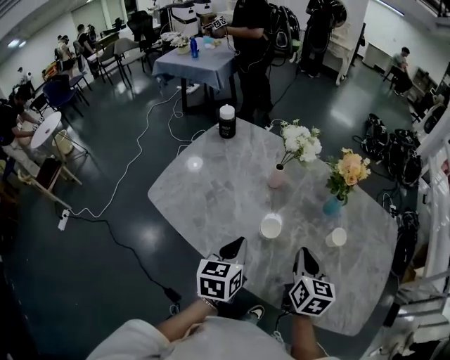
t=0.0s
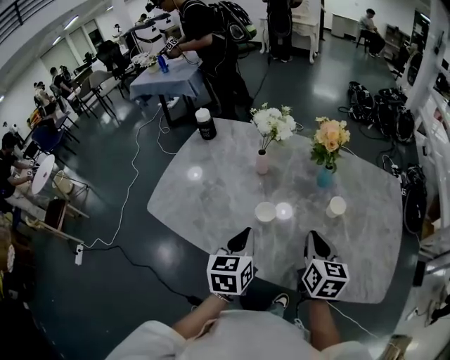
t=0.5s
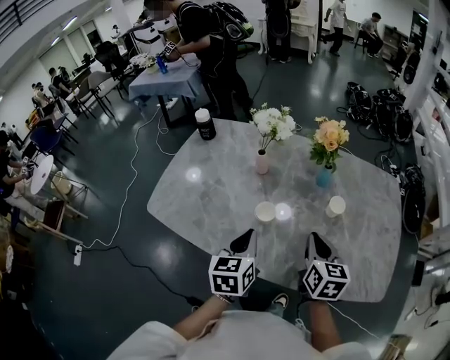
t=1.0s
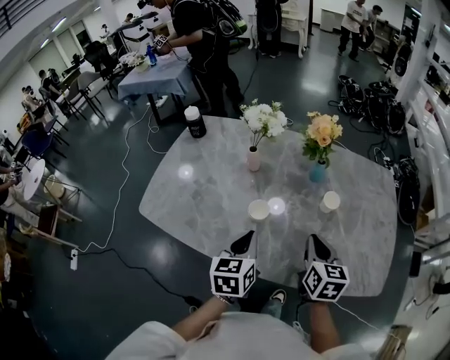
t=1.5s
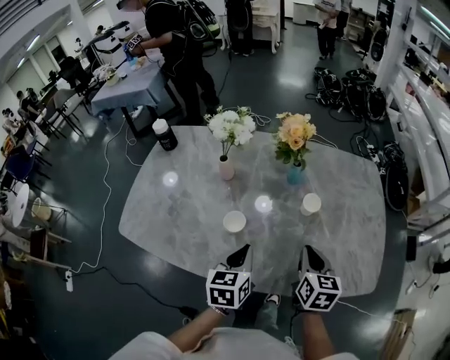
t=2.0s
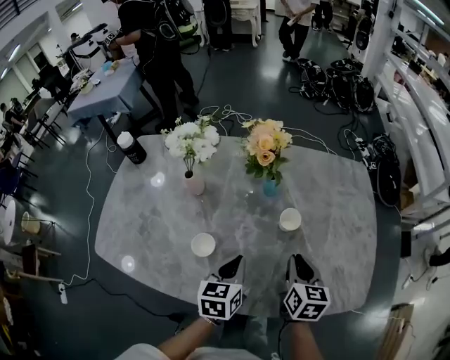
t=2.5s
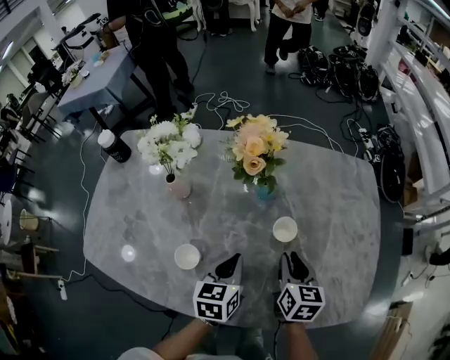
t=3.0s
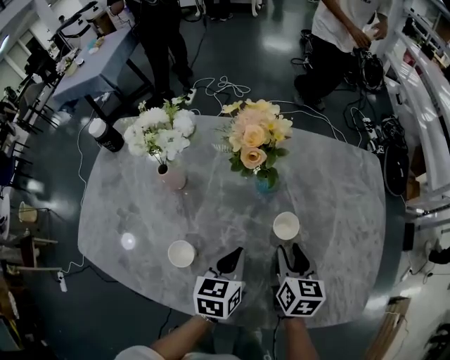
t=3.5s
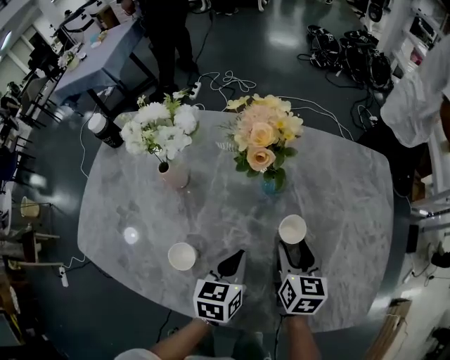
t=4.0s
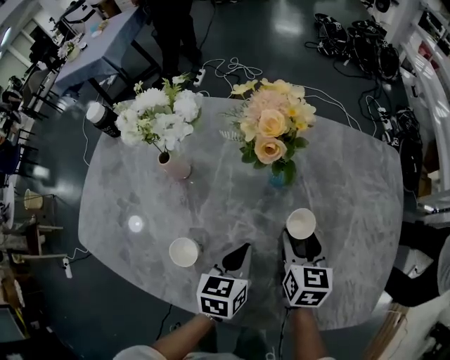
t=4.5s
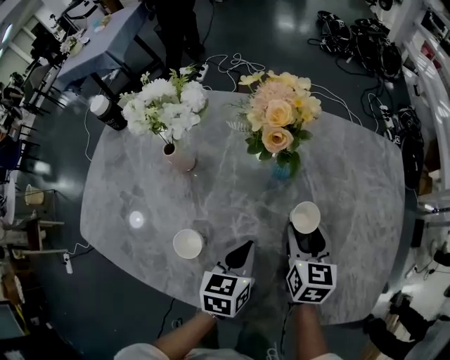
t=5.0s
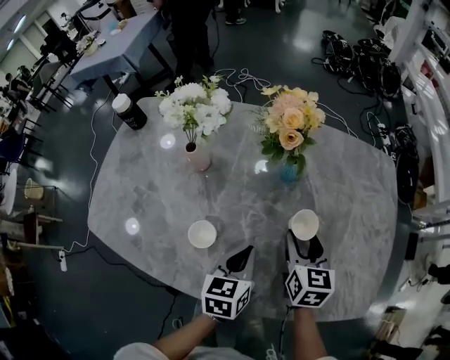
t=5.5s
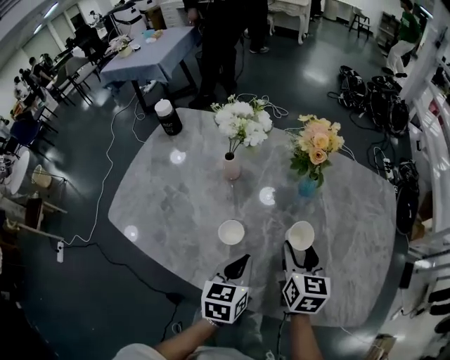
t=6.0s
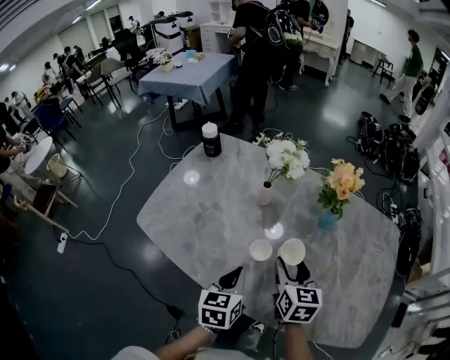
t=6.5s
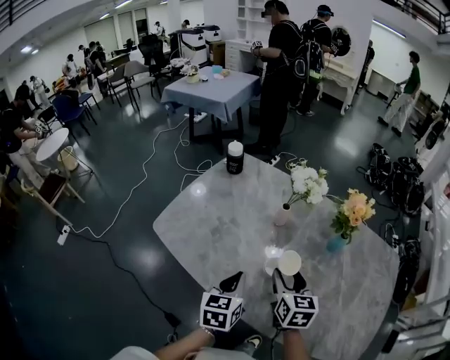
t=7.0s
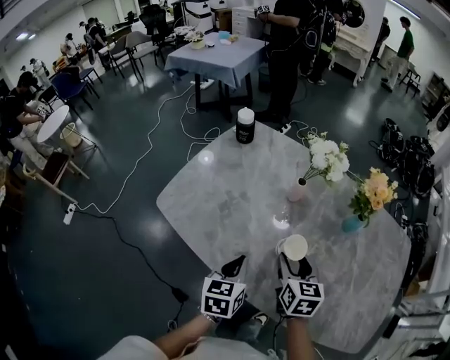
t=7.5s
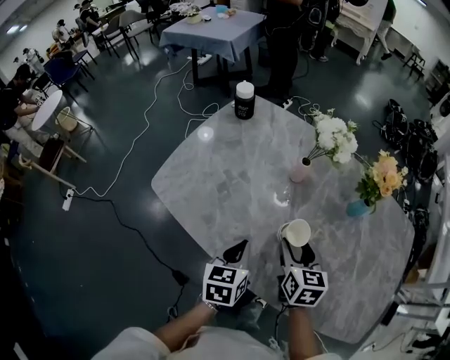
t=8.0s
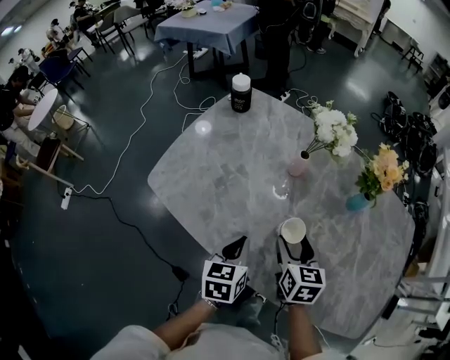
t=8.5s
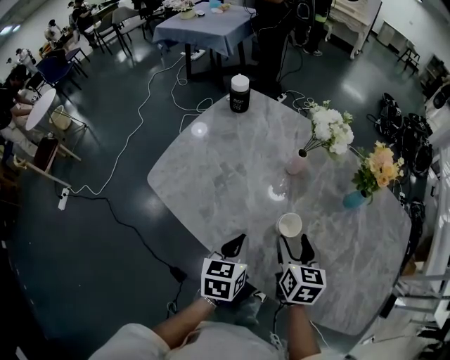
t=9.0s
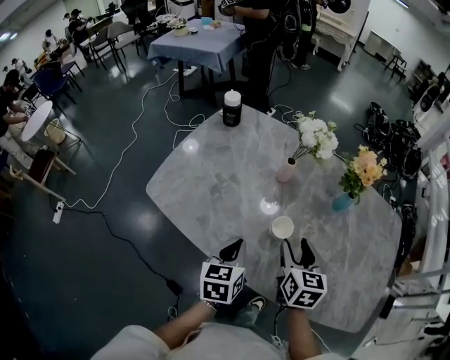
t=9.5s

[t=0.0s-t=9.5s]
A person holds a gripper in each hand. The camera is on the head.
t=0.0s to t=2.0s: The grippers both shift to the right by approximately 10 cm.
t=2.0s to t=4.0s: The left gripper moves forward, downward and to the right, roughly 20 cm; the right gripper moves forward and downward, approximately 20 cm, and opens up.
t=4.0s to t=5.5s: The left gripper shifts by some 5 cm, while the right gripper moves approximately 5 cm.
t=5.5s to t=7.5s: Both grippers move to the left, approximately 25 cm. The left gripper swivels about 20 degrees. Meanwhile the right gripper rotates some 20 degrees.
t=7.5s to t=9.5s: The grippers stay close to where they were, moving slightly.

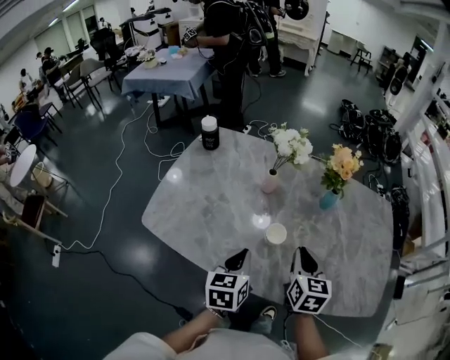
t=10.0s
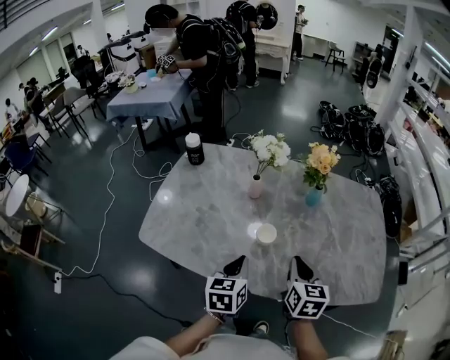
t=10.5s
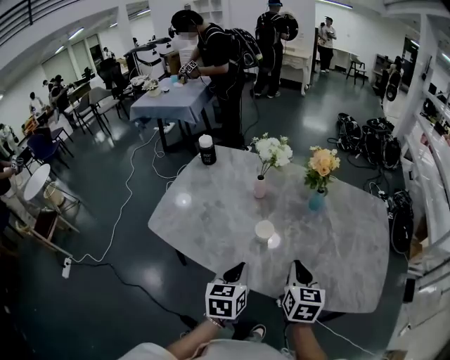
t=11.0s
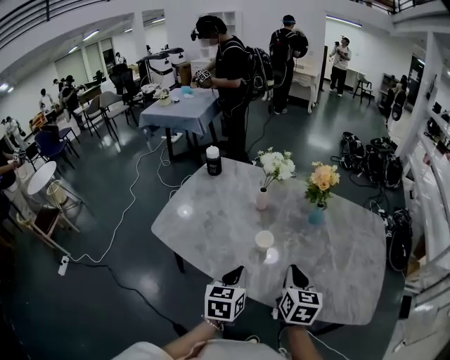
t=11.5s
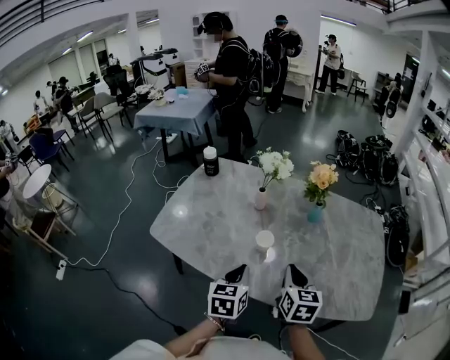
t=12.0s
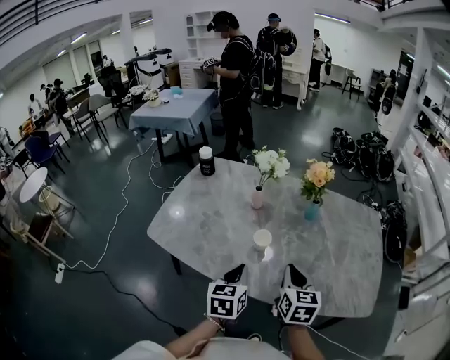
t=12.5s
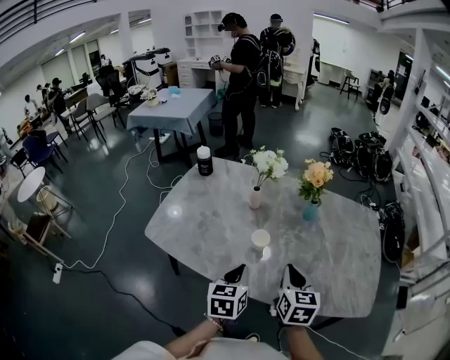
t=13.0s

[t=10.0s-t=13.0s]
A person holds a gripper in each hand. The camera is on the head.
t=10.0s to t=11.5s: Both grippers move backward, about 5 cm.
t=11.5s to t=13.0s: The grippers move only a little.

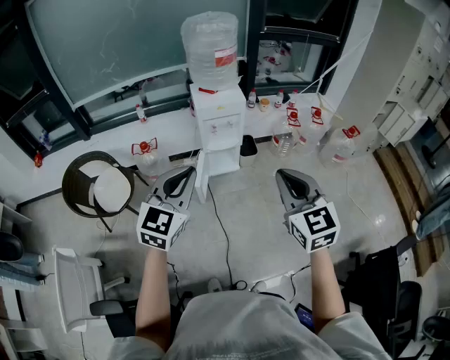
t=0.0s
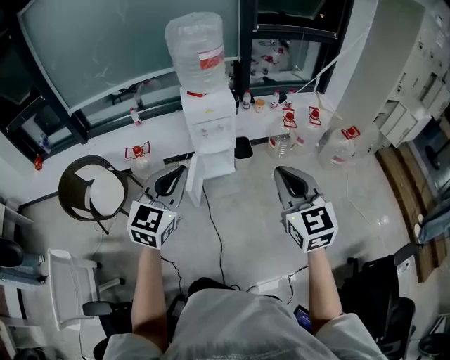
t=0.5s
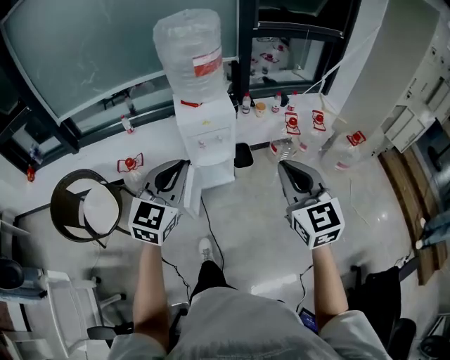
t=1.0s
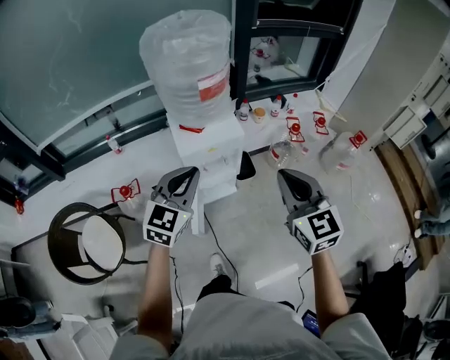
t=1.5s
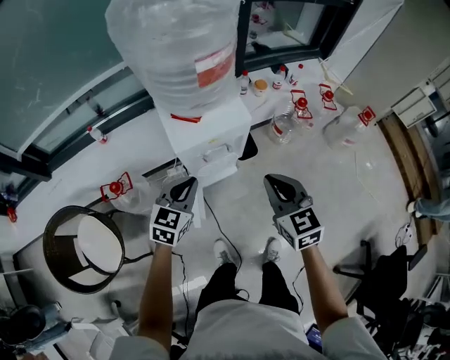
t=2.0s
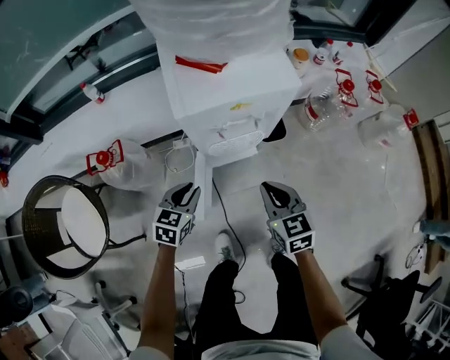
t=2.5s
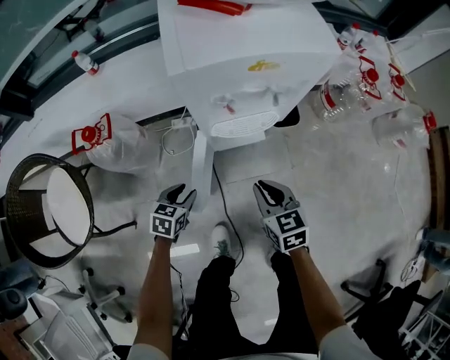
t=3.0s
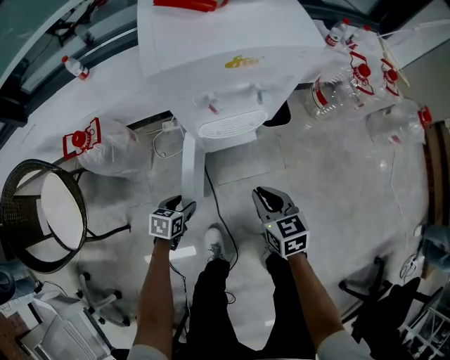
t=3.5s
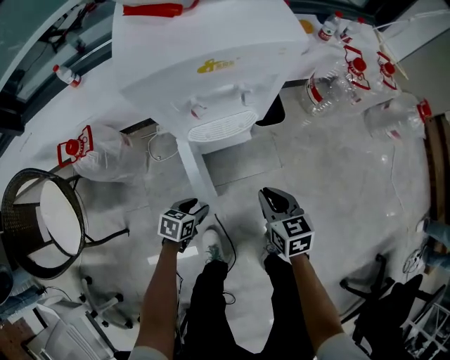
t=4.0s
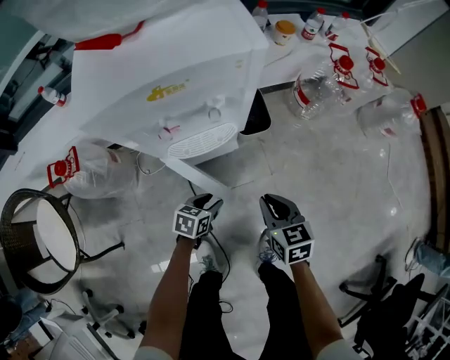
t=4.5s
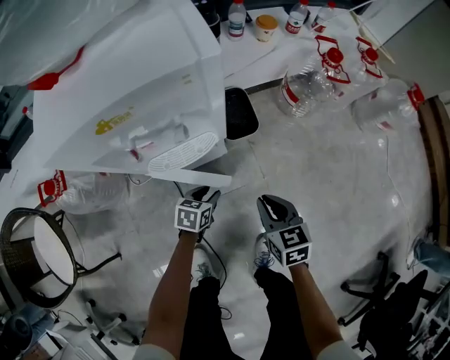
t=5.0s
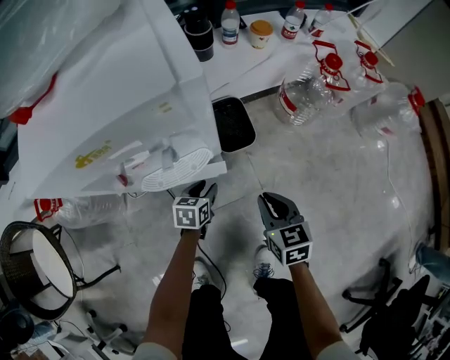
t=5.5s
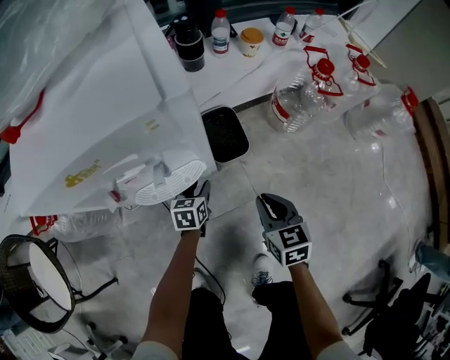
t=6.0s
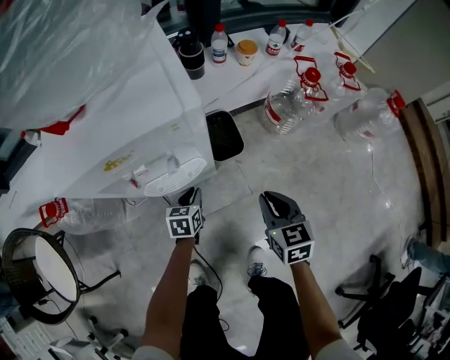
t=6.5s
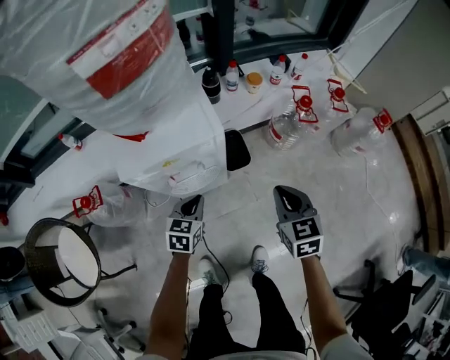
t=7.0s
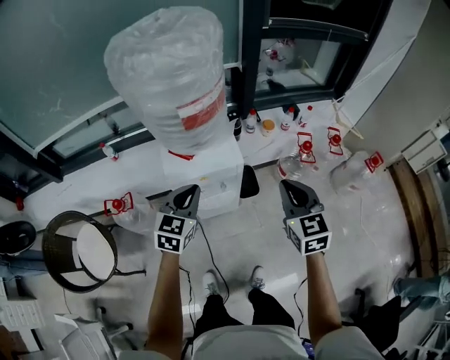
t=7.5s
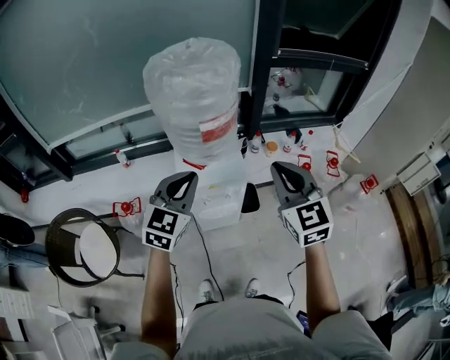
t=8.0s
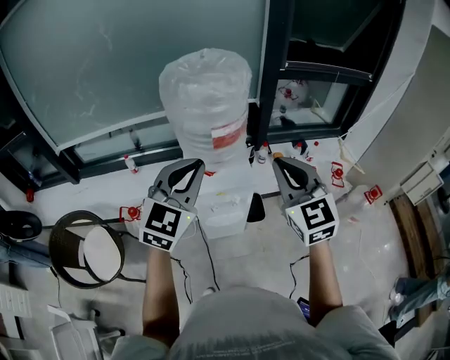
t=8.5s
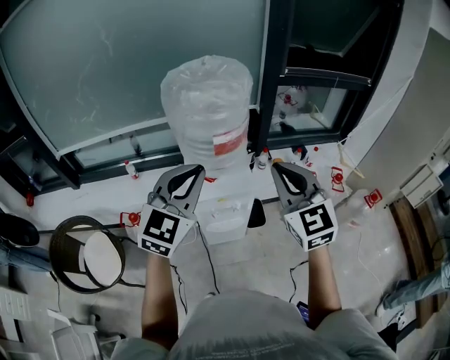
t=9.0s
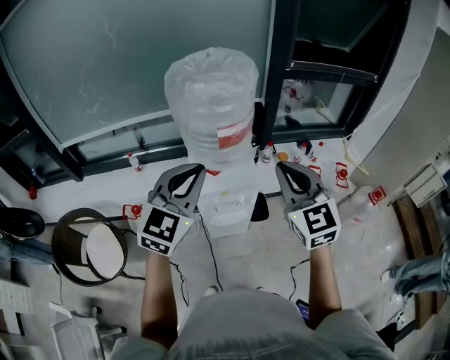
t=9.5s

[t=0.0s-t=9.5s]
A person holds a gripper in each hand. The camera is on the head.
t=0.0s to t=2.0s: The two grippers travel together, forward, approximately 50 cm. Both grippers travel together downward, about 25 cm. The left gripper rotates approximately 30 degrees.
t=2.0s to t=4.0s: Both grippers move downward, roughly 50 cm. The right gripper swivels roughly 20 degrees. The left gripper rotates roughly 40 degrees, and opens up.
t=4.0s to t=5.5s: The left gripper moves forward and to the right, approximately 25 cm. The right gripper shifts about 15 cm forward and to the right.
t=5.5s to t=7.5s: The two grippers go about 60 cm upward. The right gripper swivels roughly 30 degrees; the left gripper turns by about 40 degrees, and closes.
t=7.5s to t=9.5s: The right gripper moves upward and to the left, about 20 cm, and rotates some 20 degrees, while the left gripper shifts approximately 25 cm upward, and changes its angle by about 30 degrees.

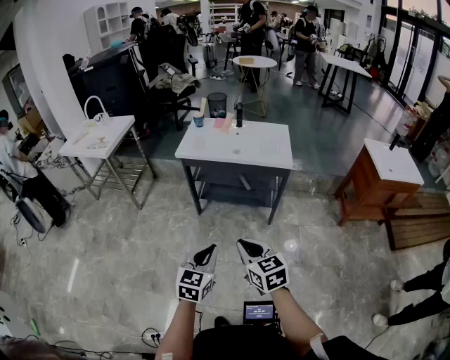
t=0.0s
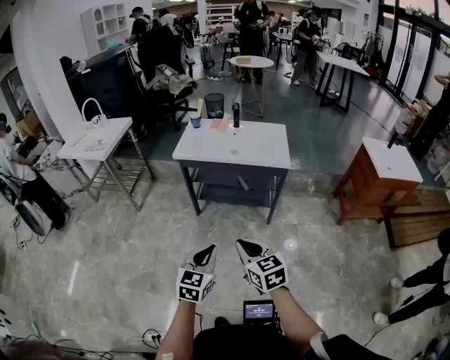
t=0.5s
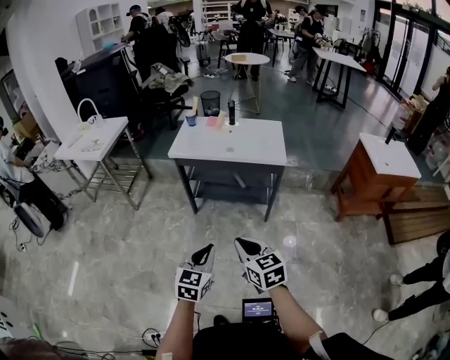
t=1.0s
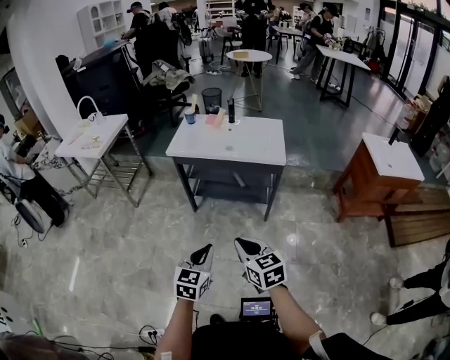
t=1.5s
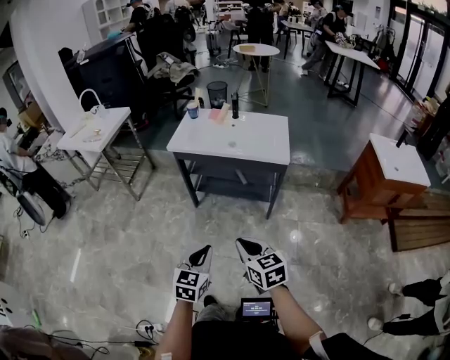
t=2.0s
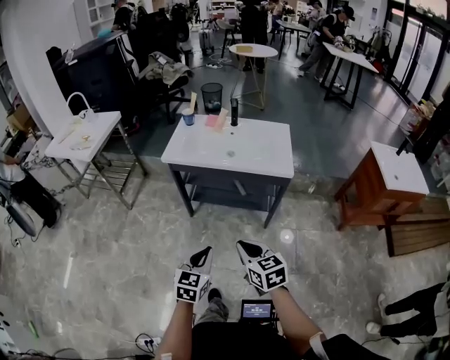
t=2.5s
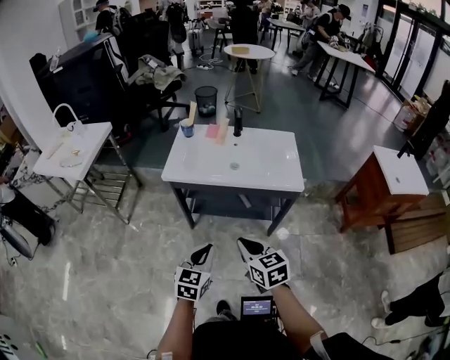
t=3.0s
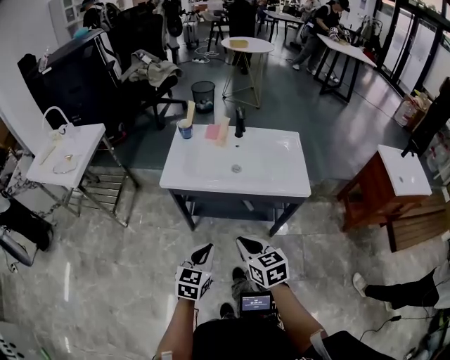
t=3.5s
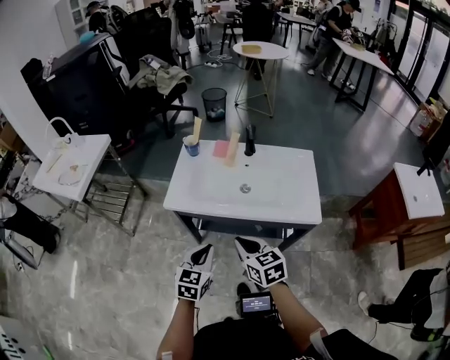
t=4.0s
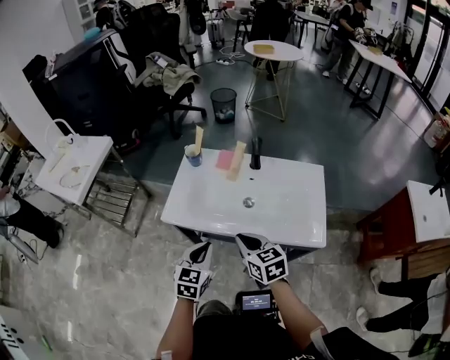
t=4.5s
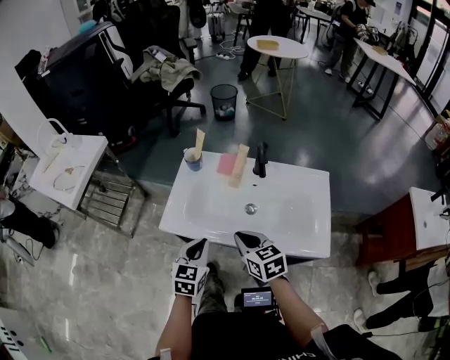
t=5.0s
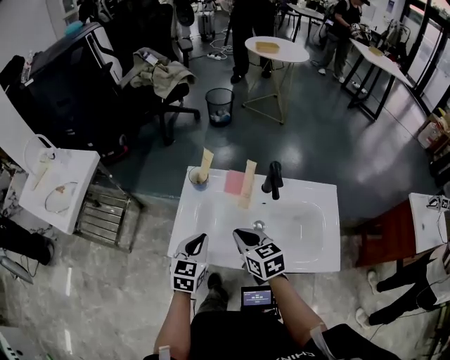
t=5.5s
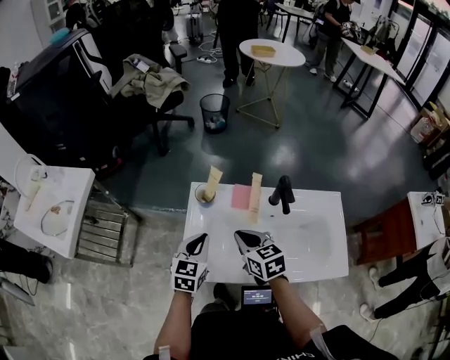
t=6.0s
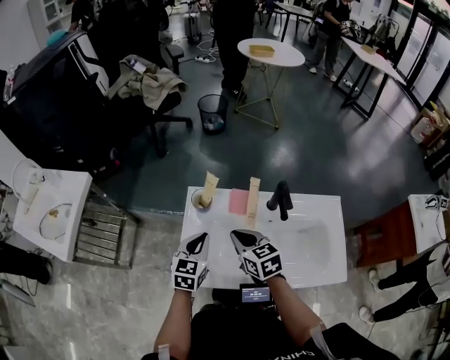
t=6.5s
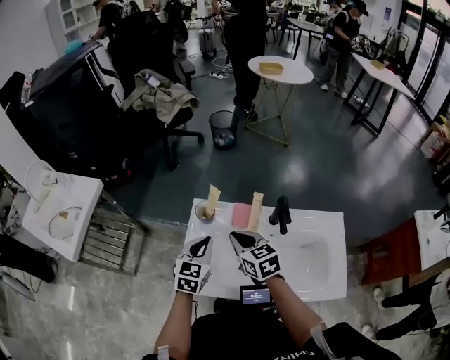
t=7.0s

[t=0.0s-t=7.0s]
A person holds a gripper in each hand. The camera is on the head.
t=0.0s to t=2.0s: The right gripper shifts about 5 cm to the right. The left gripper shifts by about 5 cm.
t=2.0s to t=3.5s: The grippers both shift forward by some 30 cm.
t=3.5s to t=5.0s: Both grippers travel together forward, some 25 cm.
t=5.0s to t=7.0s: Both grippers travel together forward, approximately 25 cm.
